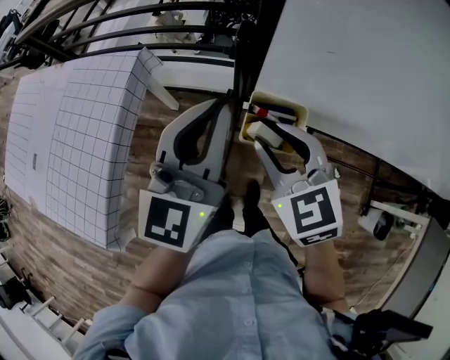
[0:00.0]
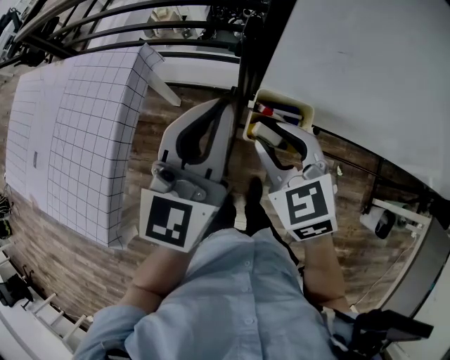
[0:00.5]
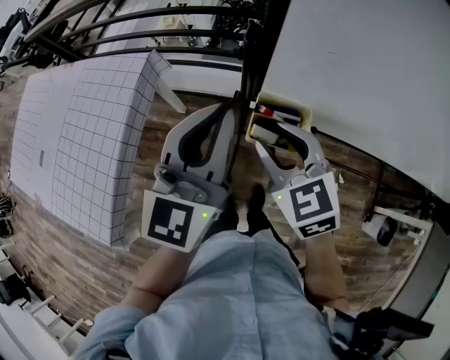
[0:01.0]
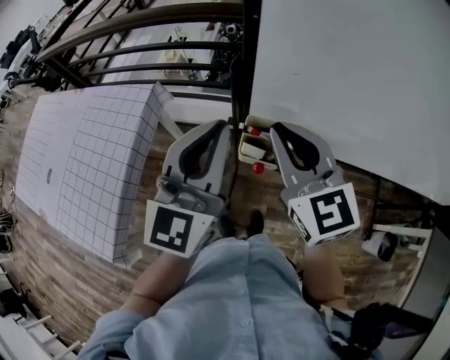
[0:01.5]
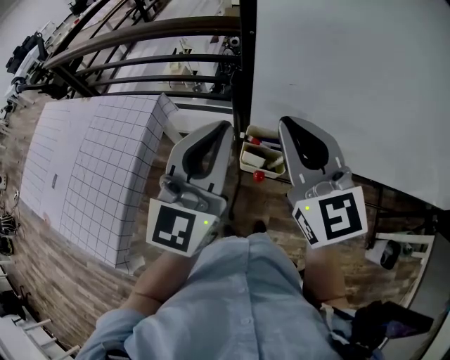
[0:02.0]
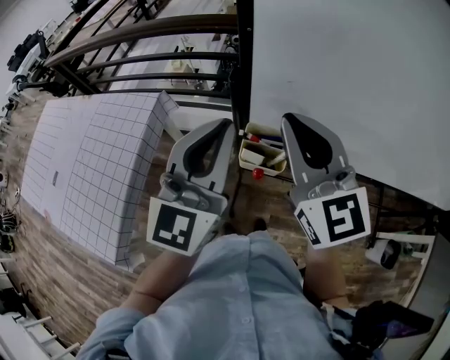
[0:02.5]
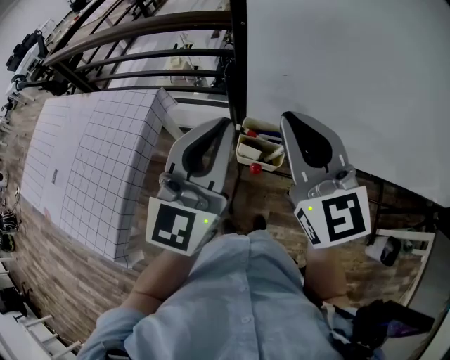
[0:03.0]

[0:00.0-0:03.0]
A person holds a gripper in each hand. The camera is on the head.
0:00.0 to 0:01.5: The right gripper shifts roughly 10 cm upward, rotates roughly 20 degrees, and closes; the left gripper is displaced upward by about 5 cm.
0:01.5 to 0:03.0: The right gripper travels upward by about 5 cm.

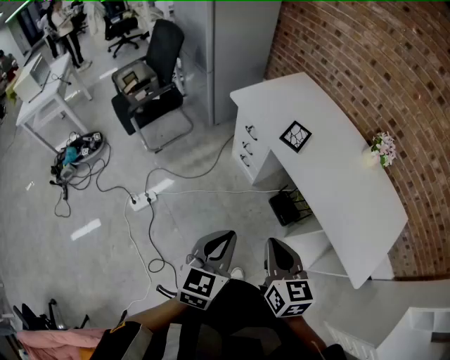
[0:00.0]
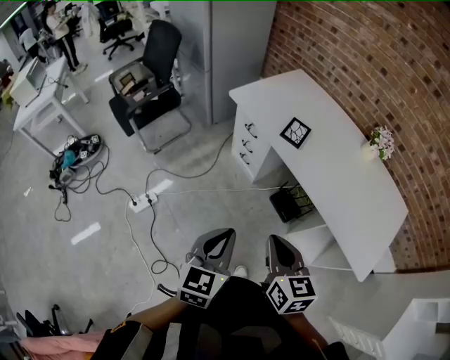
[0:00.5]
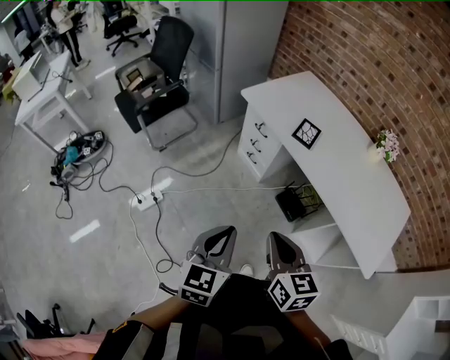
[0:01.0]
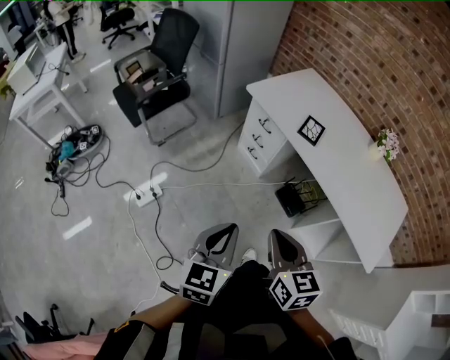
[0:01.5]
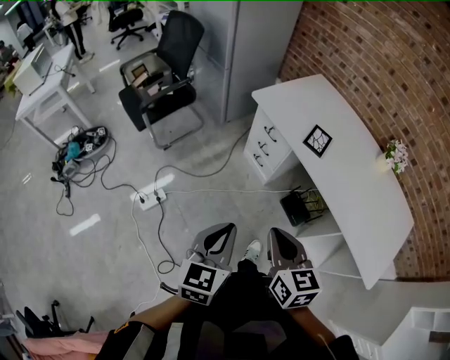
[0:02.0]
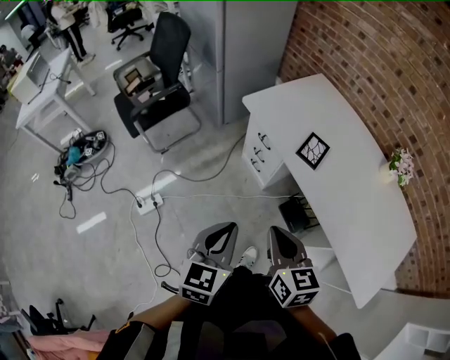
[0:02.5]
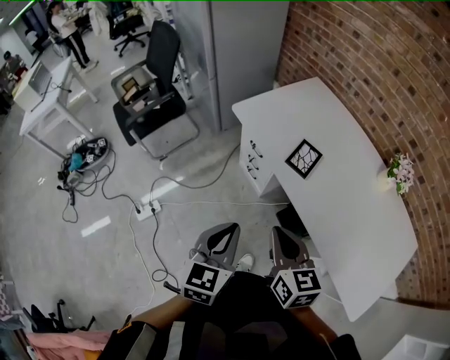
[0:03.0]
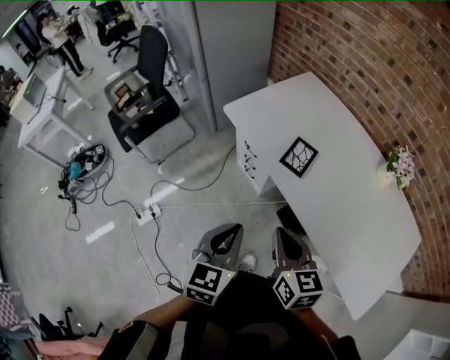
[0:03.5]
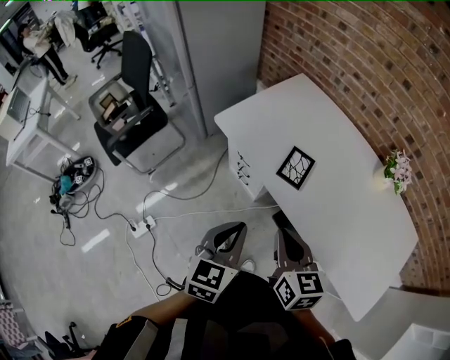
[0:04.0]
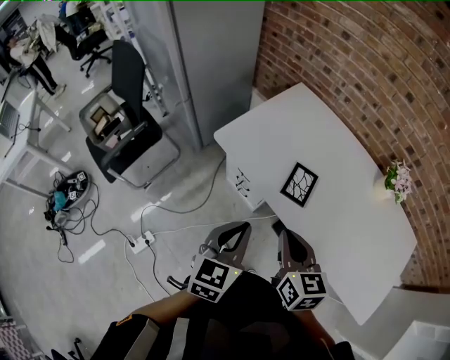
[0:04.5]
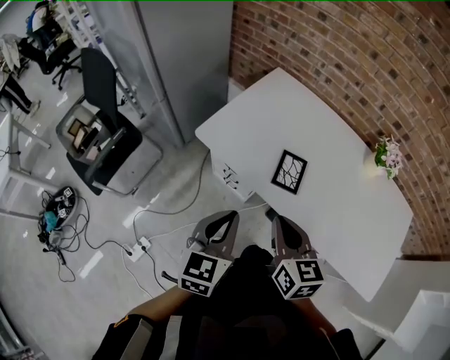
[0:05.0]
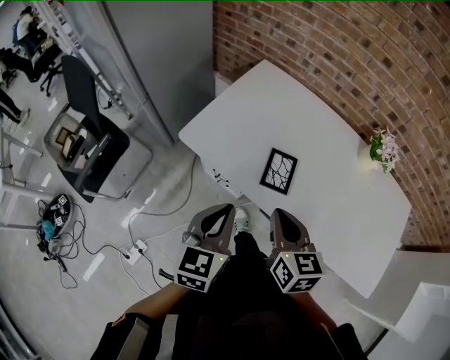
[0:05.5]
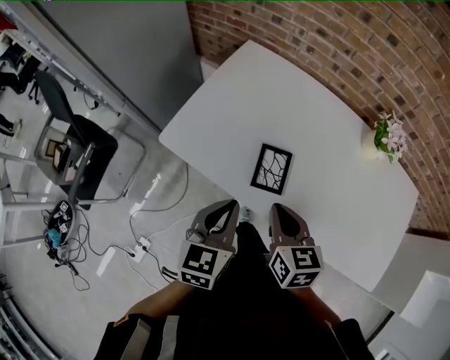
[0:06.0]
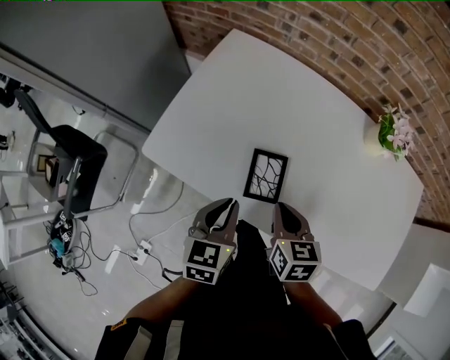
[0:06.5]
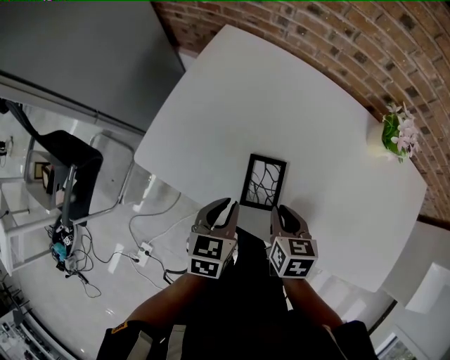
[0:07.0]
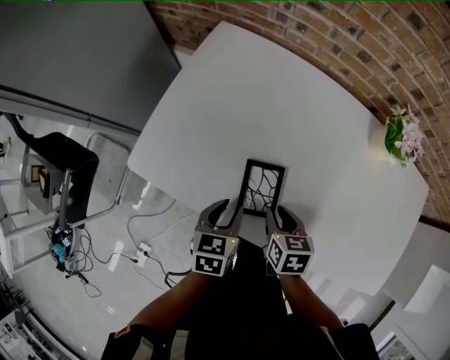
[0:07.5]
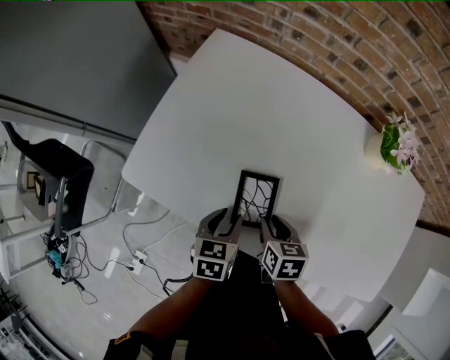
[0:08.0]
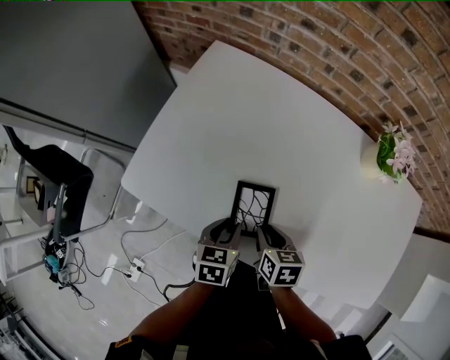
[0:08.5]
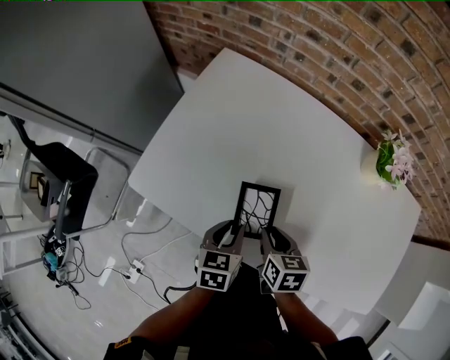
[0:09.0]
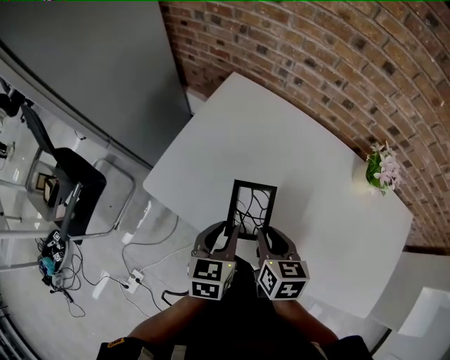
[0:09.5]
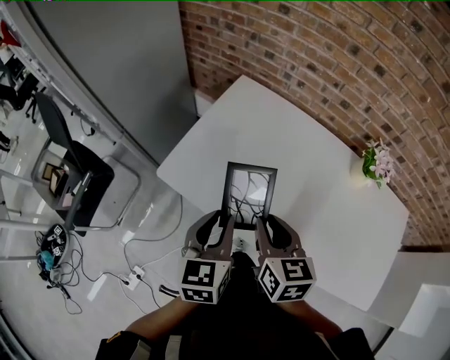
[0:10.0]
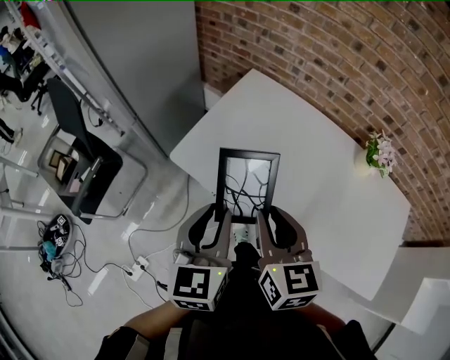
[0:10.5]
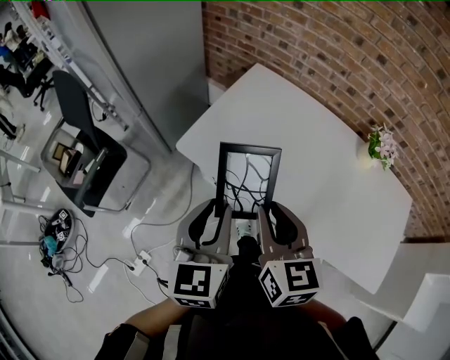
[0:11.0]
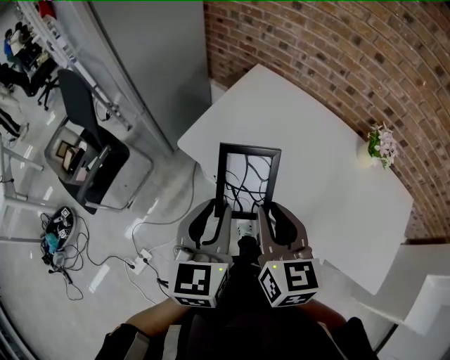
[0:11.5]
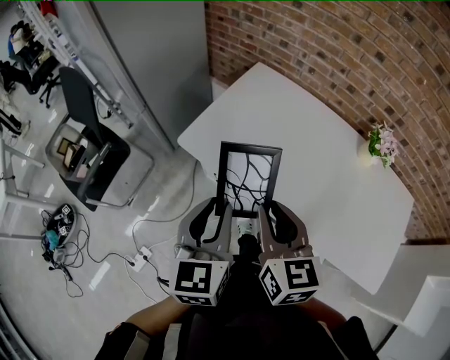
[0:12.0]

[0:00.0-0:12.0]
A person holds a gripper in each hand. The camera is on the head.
0:00.0 to 0:02.0: The two grippers go roughly 10 cm to the left.
0:02.0 to 0:04.0: Both grippers move forward and to the right, about 25 cm.
0:04.0 to 0:06.0: The grippers both shift forward by approximately 20 cm.
0:06.0 to 0:08.0: The right gripper shifts some 20 cm downward, rotates roughly 20 degrees, and opens up; the left gripper goes approximately 20 cm downward and forward, swivels some 20 degrees, and opens its fingers.
0:08.0 to 0:10.0: The left gripper travels upward by some 20 cm, and swivels about 30 degrees, while the right gripper moves upward and to the left, about 25 cm, and changes its angle by roughly 30 degrees.
0:10.0 to 0:12.0: The grippers both shift backward, upward and to the left by some 15 cm.

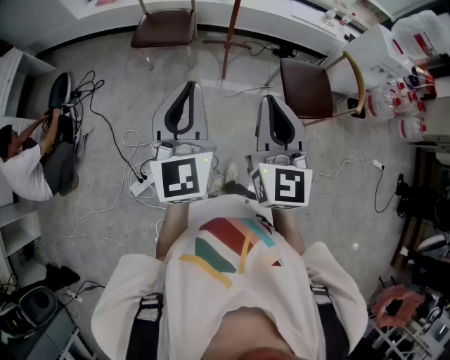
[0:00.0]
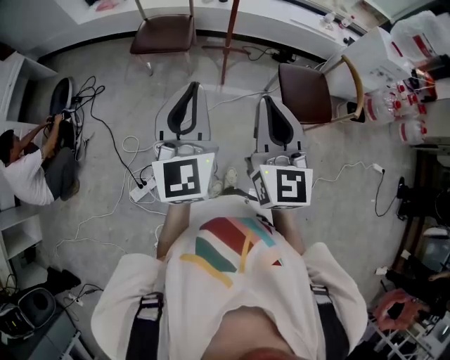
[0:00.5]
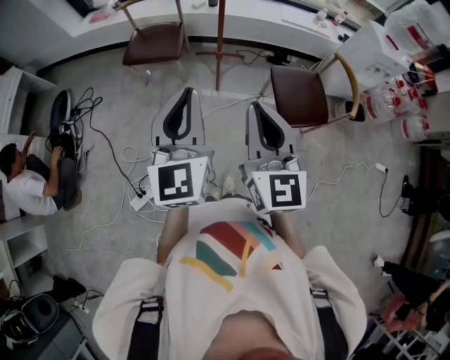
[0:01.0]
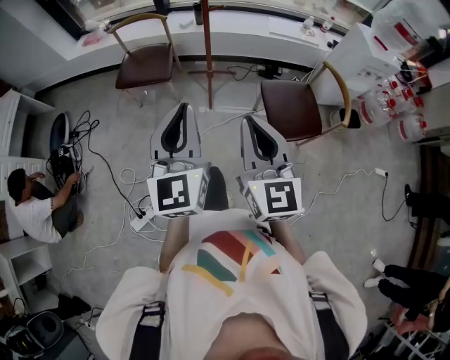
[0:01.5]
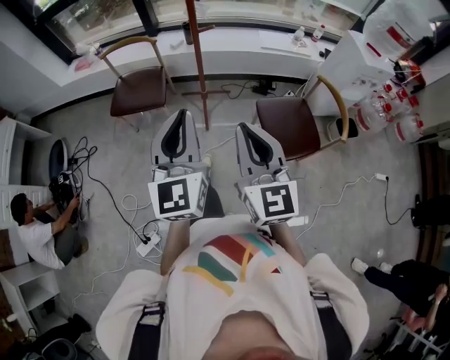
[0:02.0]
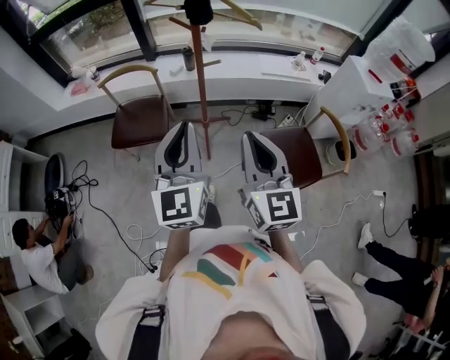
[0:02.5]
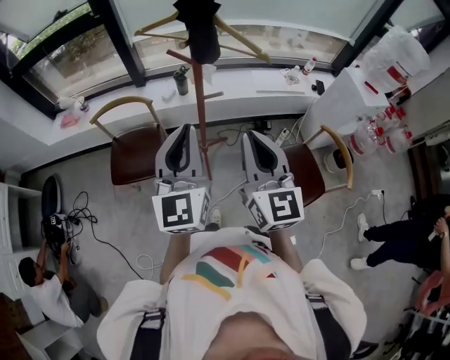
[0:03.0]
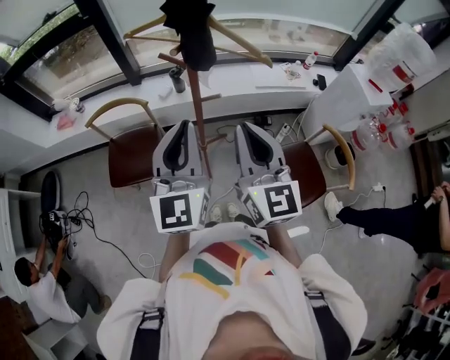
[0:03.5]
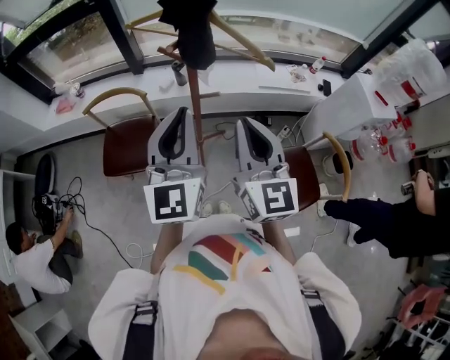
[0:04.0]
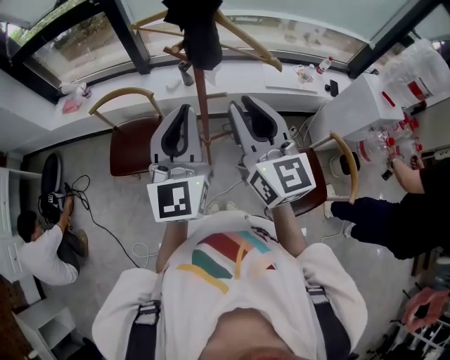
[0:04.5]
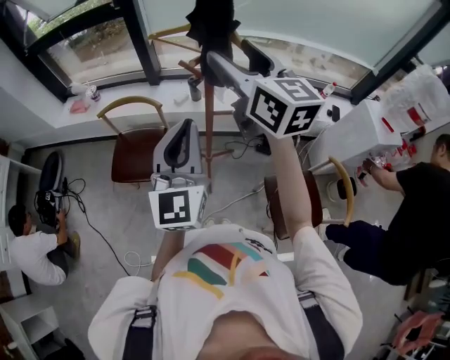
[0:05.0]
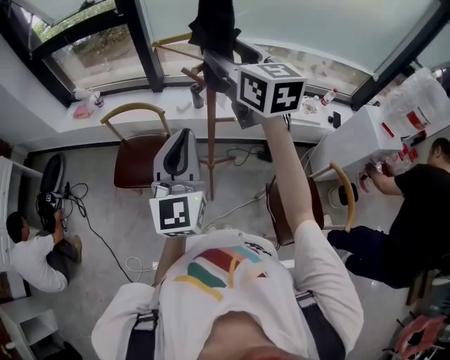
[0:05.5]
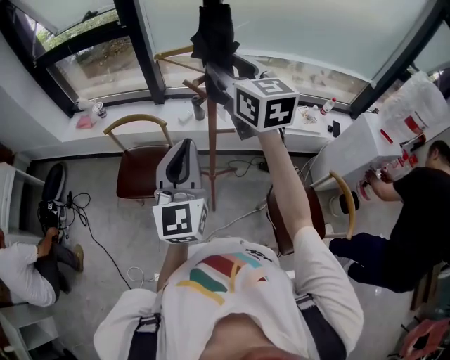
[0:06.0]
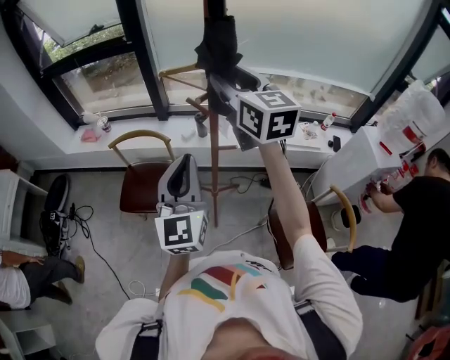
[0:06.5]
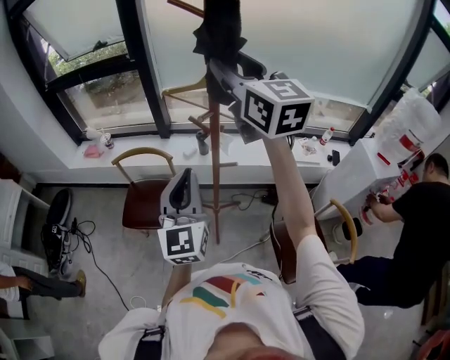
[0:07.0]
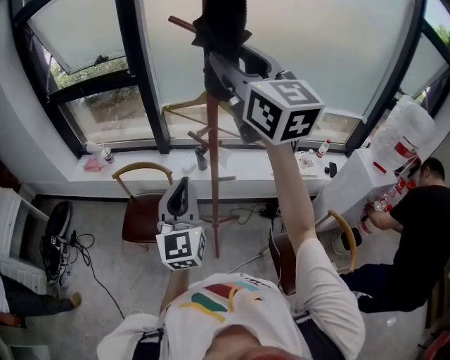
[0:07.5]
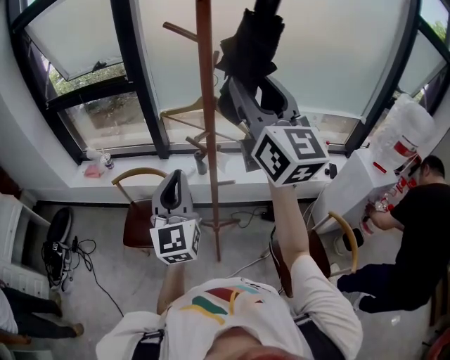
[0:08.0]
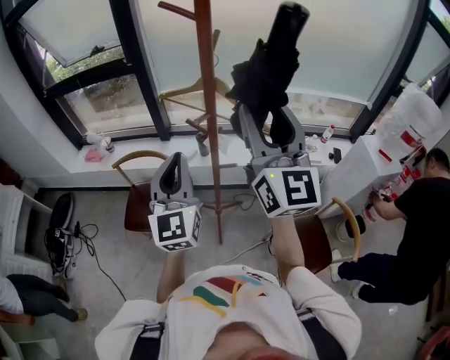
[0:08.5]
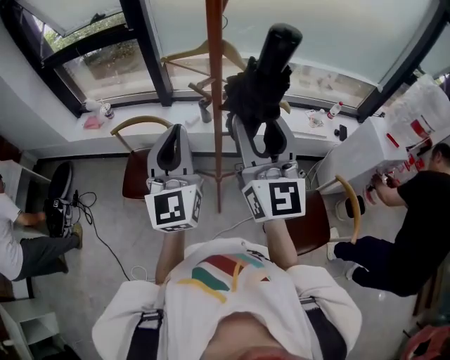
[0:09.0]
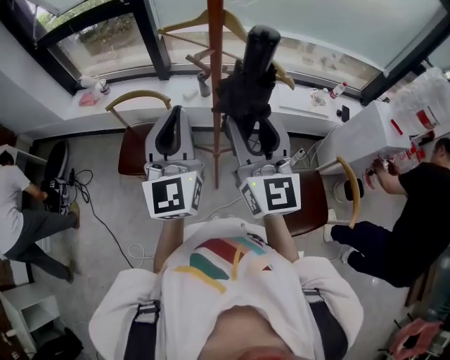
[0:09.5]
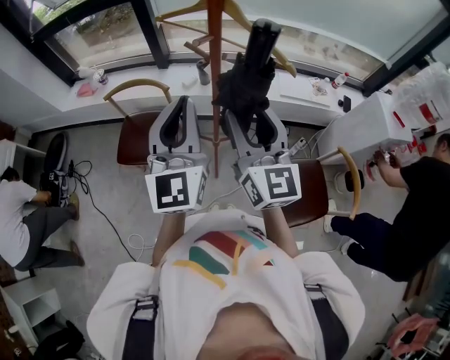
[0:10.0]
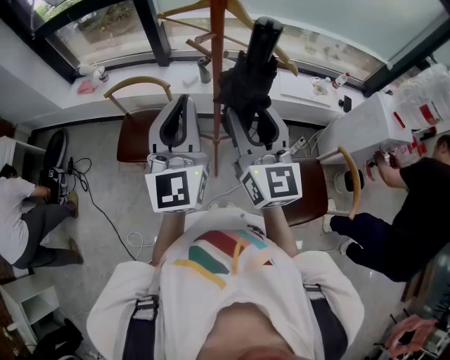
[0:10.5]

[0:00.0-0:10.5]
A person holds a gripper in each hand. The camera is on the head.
0:00.0 to 0:02.0: The two grippers go about 20 cm forward and to the right.
0:02.0 to 0:04.0: Both grippers travel together forward, roughly 35 cm.
0:04.0 to 0:06.5: The right gripper travels forward and upward by about 20 cm, and opens up.
0:06.5 to 0:08.5: The left gripper changes place by some 5 cm; the right gripper moves backward and upward, some 15 cm, and rotates some 30 degrees.
0:08.5 to 0:10.5: The right gripper goes roughly 20 cm downward.

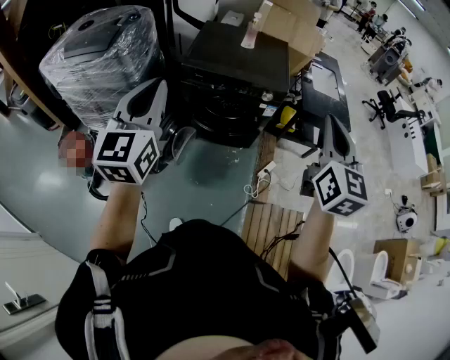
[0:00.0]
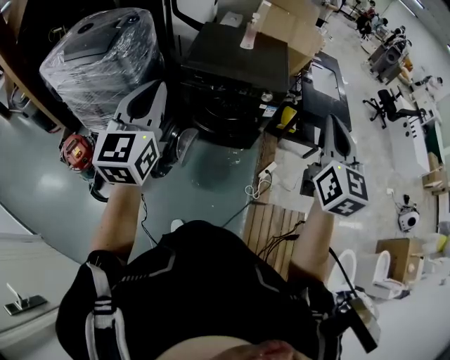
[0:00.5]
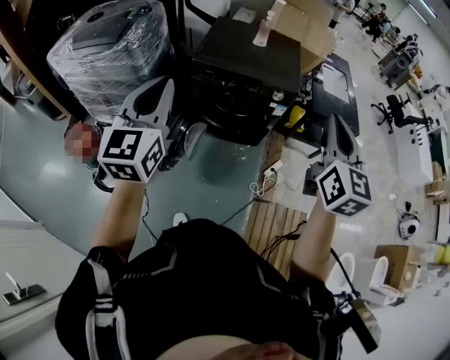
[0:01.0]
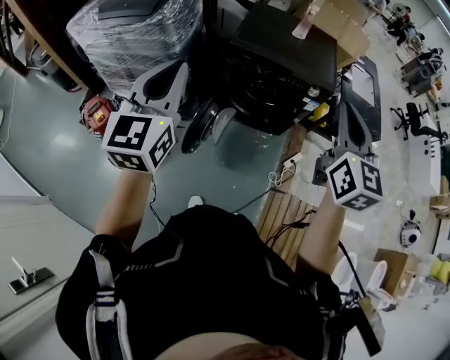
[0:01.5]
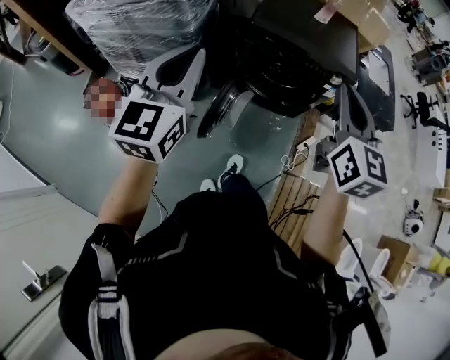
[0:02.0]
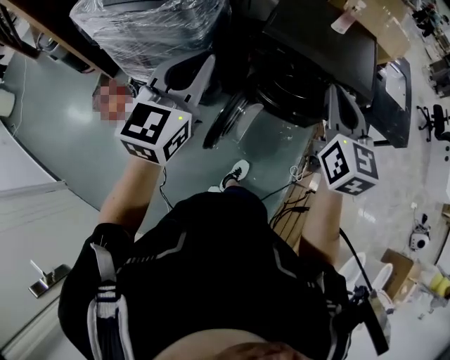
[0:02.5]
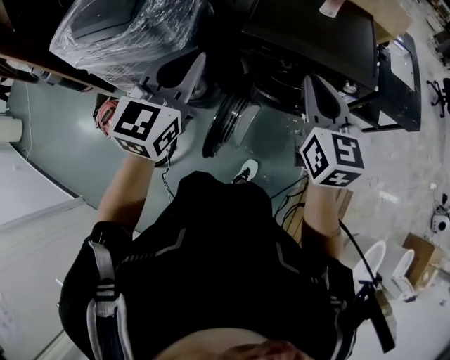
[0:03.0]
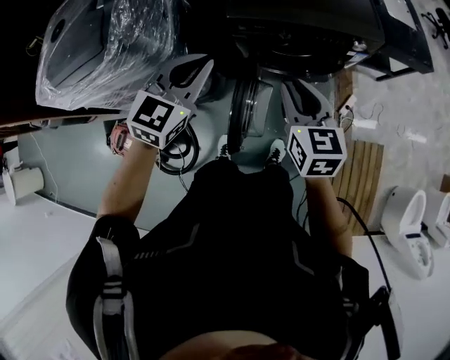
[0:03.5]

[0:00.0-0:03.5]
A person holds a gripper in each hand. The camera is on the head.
0:00.0 to 0:02.0: The right gripper travels to the left by about 25 cm. The left gripper moves to the left and downward, approximately 15 cm.
0:02.0 to 0:03.5: The left gripper shifts approximately 30 cm forward and downward, and swivels approximately 40 degrees. The right gripper shifts about 25 cm downward and forward, changes its angle by some 20 degrees, and opens up.
